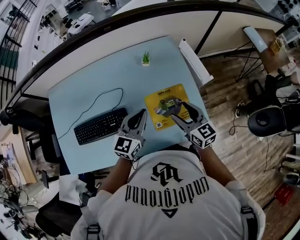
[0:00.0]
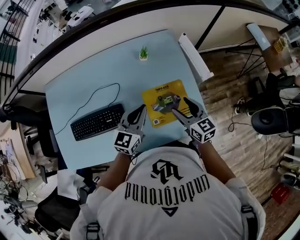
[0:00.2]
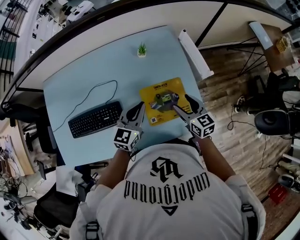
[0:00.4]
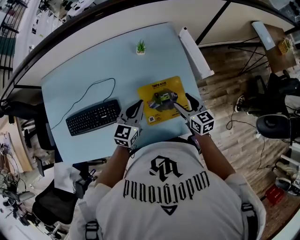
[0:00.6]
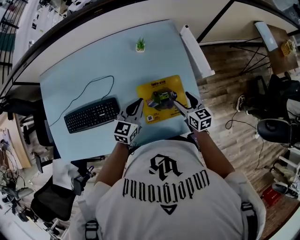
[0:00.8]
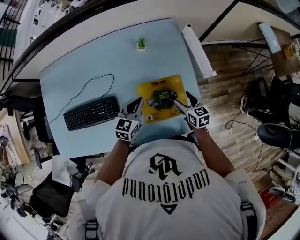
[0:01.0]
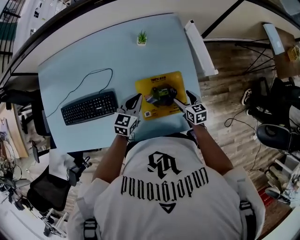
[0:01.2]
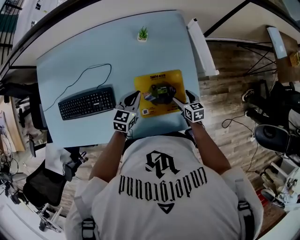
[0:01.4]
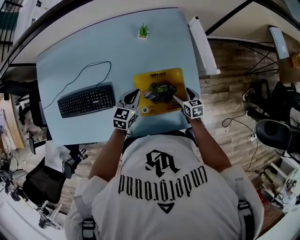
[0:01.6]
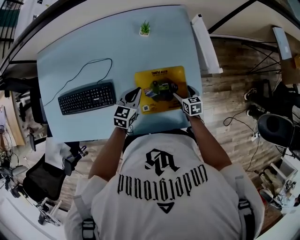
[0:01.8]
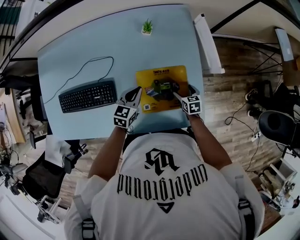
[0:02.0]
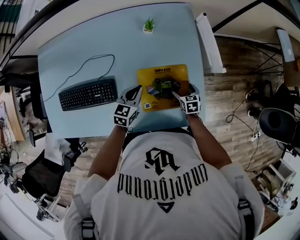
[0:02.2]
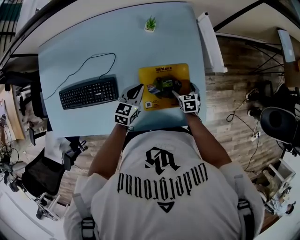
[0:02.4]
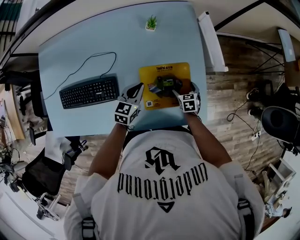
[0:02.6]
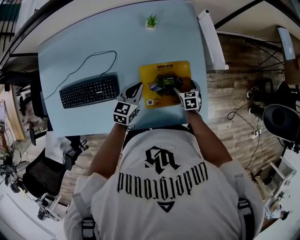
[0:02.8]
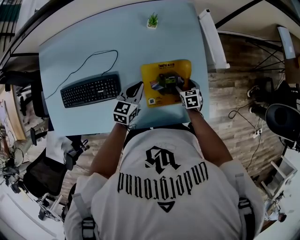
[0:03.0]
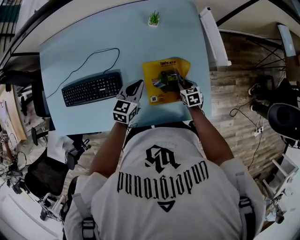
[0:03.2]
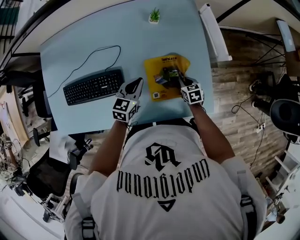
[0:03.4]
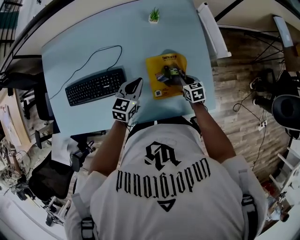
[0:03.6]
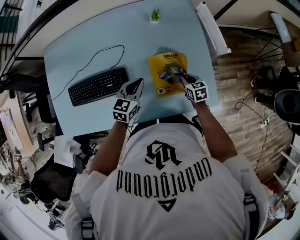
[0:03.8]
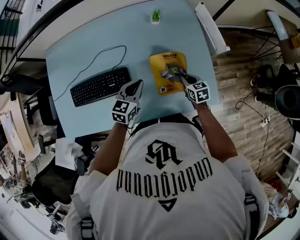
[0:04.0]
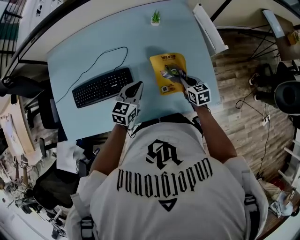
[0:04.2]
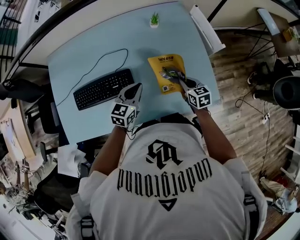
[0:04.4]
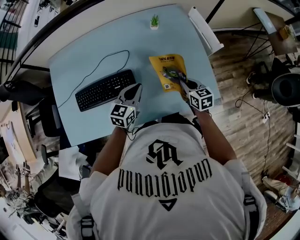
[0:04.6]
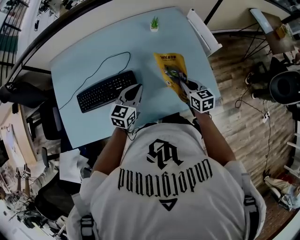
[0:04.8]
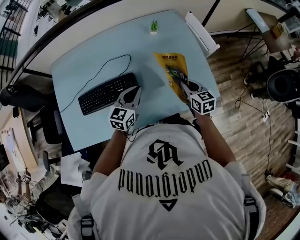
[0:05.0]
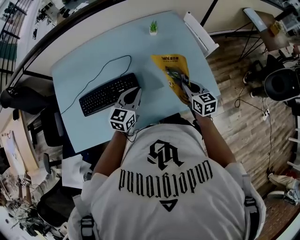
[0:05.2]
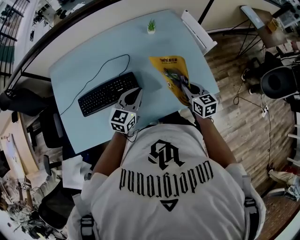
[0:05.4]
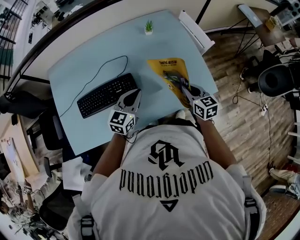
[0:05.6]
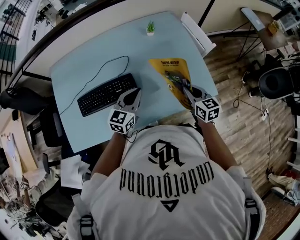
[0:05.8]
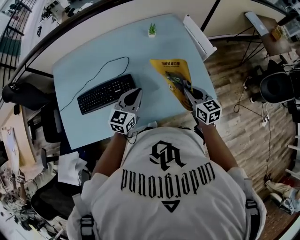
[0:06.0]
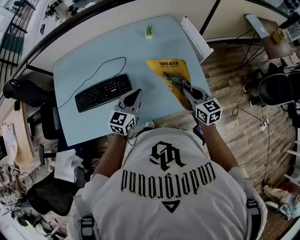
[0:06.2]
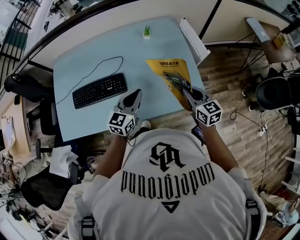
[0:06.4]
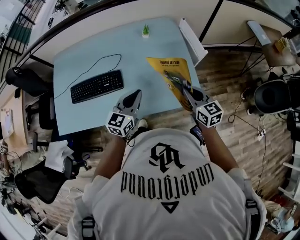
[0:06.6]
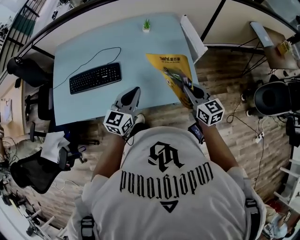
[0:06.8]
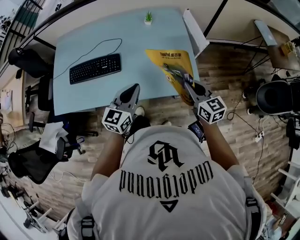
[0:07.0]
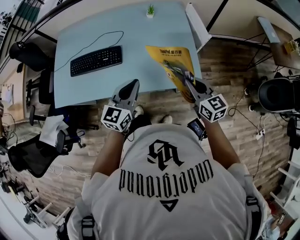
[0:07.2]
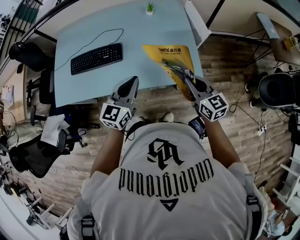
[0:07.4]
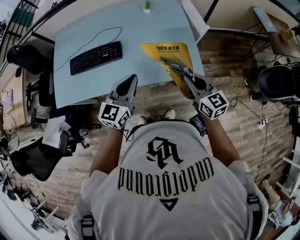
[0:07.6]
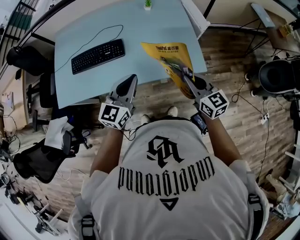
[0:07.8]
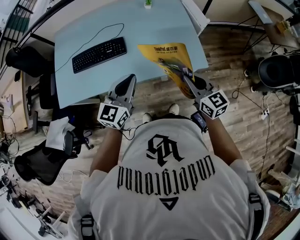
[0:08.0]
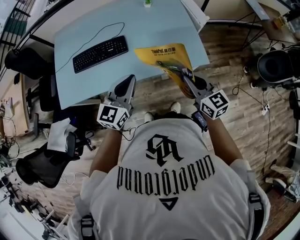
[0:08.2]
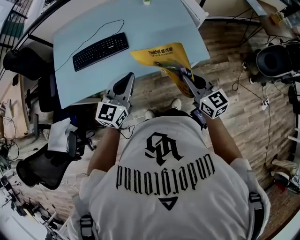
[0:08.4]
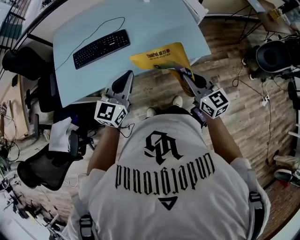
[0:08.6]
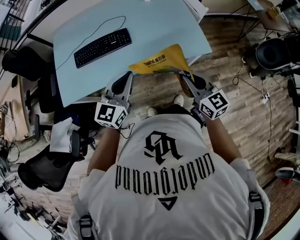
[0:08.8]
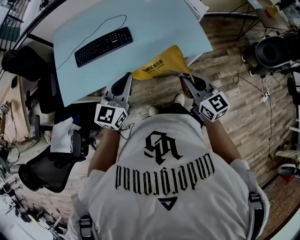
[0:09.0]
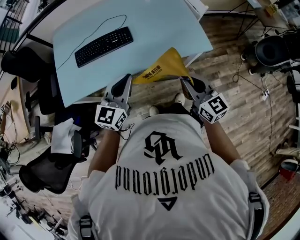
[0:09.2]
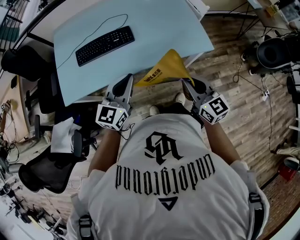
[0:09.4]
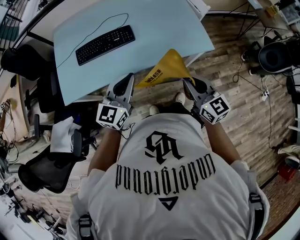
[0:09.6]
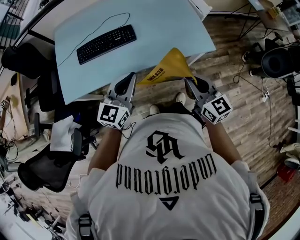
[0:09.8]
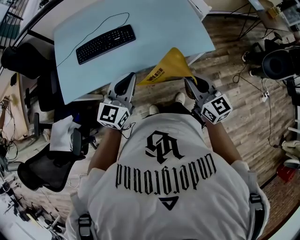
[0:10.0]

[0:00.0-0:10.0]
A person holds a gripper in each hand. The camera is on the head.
0:00.0 to 0:01.4: The right gripper heads downward and to the right, covering about 30 cm, and swivels about 30 degrees. Meanwhile the left gripper heads downward, covering roughly 20 cm, and swivels about 20 degrees.
0:01.4 to 0:02.8: The right gripper shifts roughly 5 cm downward.
0:02.8 to 0:04.2: The left gripper goes about 15 cm backward, upward and to the left. The right gripper shifts approximately 15 cm upward, to the left and backward, and closes up.
0:04.2 to 0:05.8: The left gripper goes roughly 10 cm upward and backward; the right gripper goes about 15 cm upward and backward.
0:05.8 to 0:07.2: The left gripper goes roughly 20 cm backward and to the right. The right gripper shifts approximately 15 cm to the right and backward, and turns by approximately 20 degrees.
0:07.2 to 0:08.6: The left gripper travels to the left and backward by approximately 15 cm, while the right gripper moves backward and to the left, roughly 20 cm.
0:08.6 to 0:10.0: The left gripper changes place by approximately 5 cm, while the right gripper shifts some 5 cm to the left.

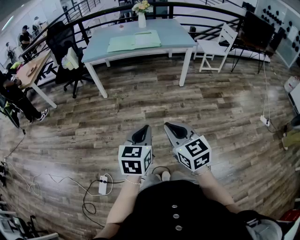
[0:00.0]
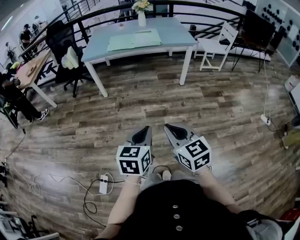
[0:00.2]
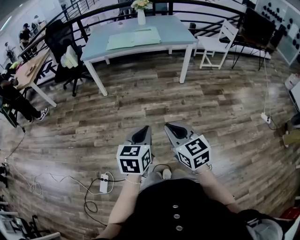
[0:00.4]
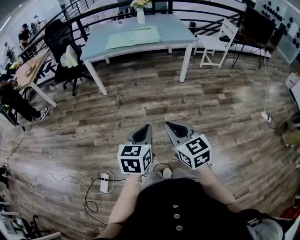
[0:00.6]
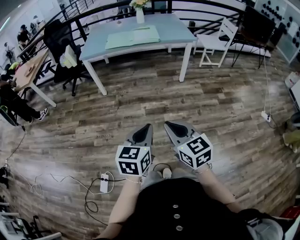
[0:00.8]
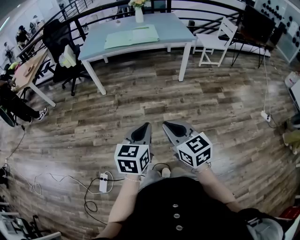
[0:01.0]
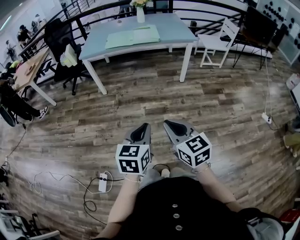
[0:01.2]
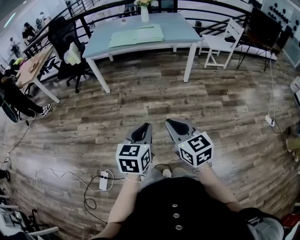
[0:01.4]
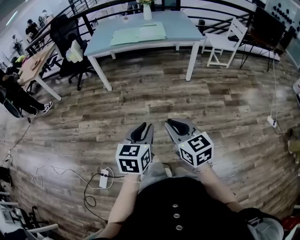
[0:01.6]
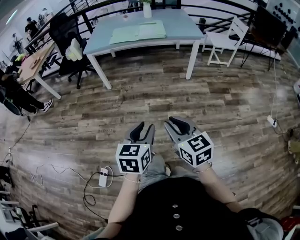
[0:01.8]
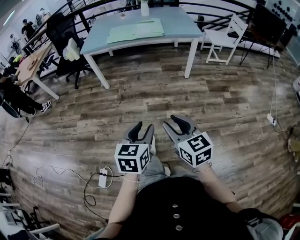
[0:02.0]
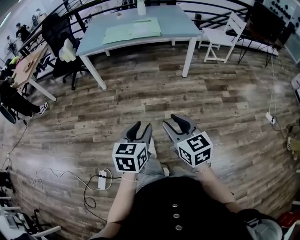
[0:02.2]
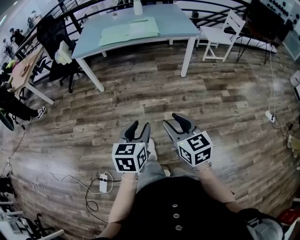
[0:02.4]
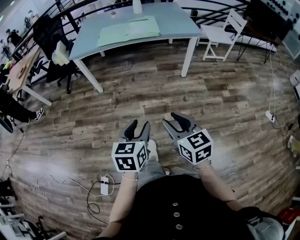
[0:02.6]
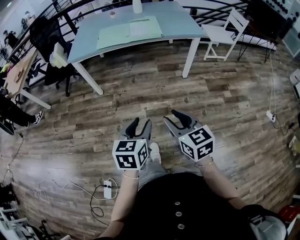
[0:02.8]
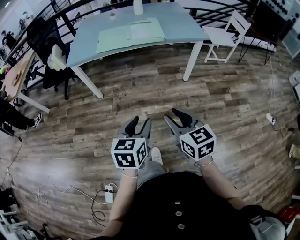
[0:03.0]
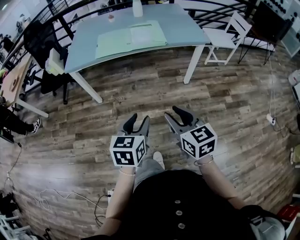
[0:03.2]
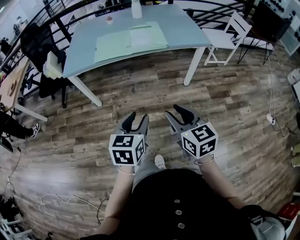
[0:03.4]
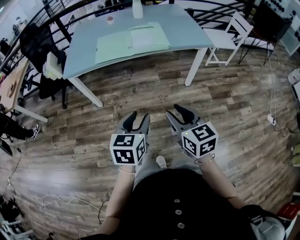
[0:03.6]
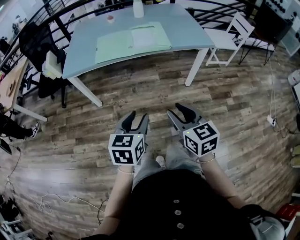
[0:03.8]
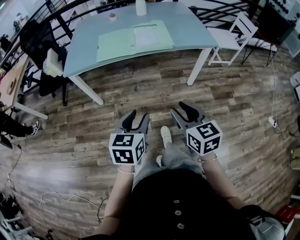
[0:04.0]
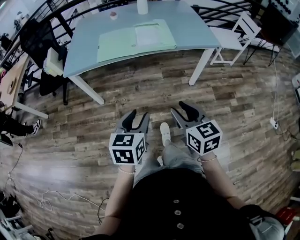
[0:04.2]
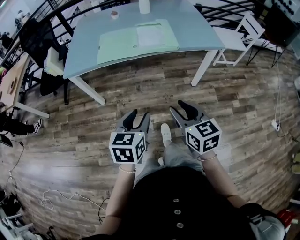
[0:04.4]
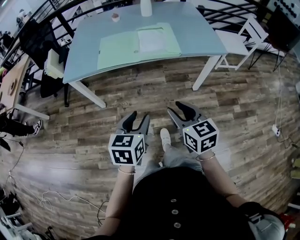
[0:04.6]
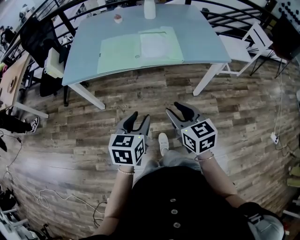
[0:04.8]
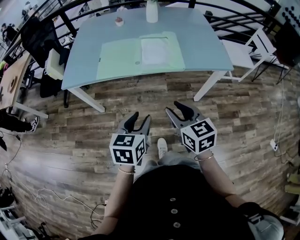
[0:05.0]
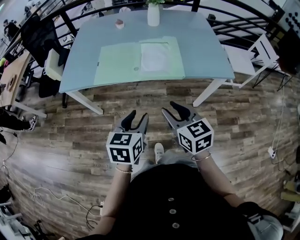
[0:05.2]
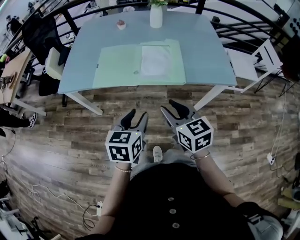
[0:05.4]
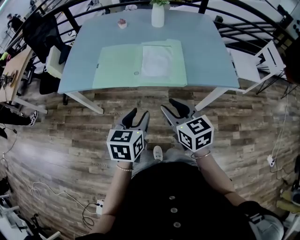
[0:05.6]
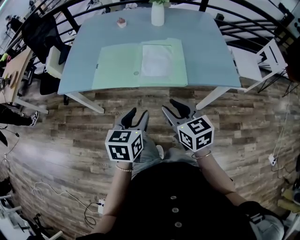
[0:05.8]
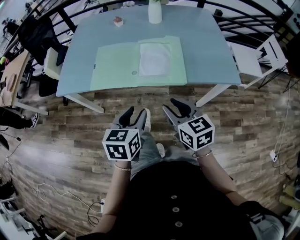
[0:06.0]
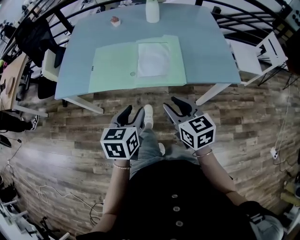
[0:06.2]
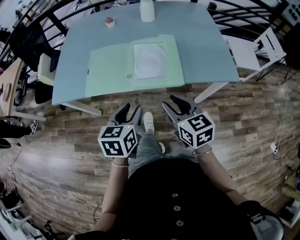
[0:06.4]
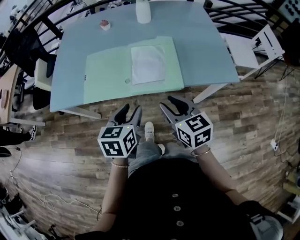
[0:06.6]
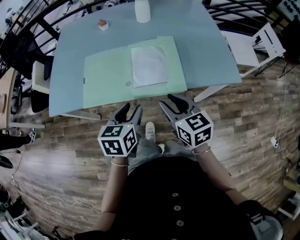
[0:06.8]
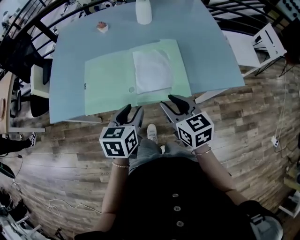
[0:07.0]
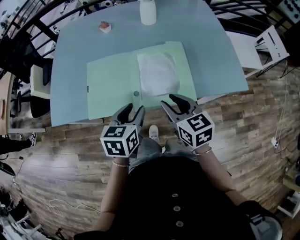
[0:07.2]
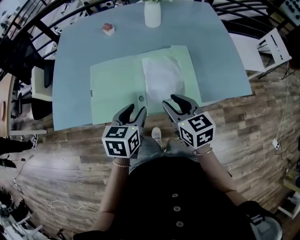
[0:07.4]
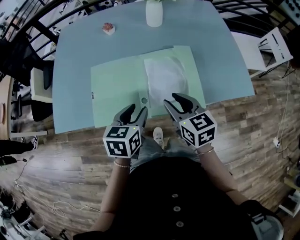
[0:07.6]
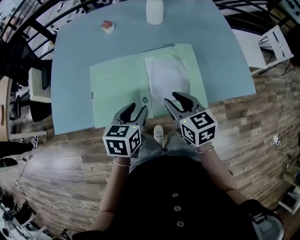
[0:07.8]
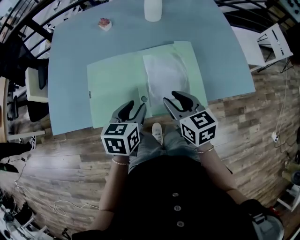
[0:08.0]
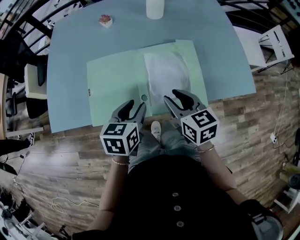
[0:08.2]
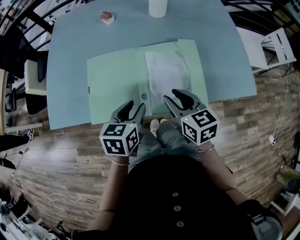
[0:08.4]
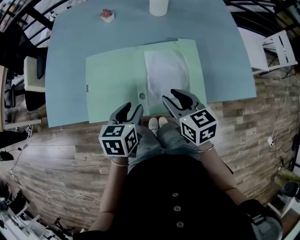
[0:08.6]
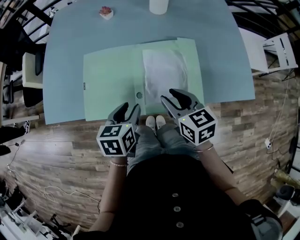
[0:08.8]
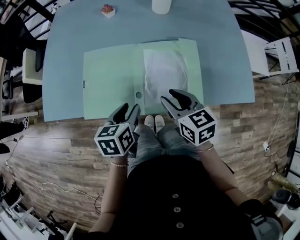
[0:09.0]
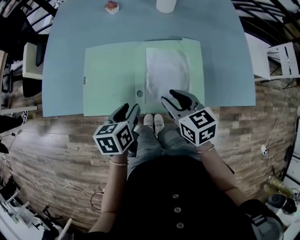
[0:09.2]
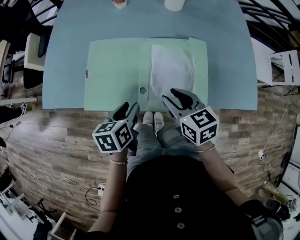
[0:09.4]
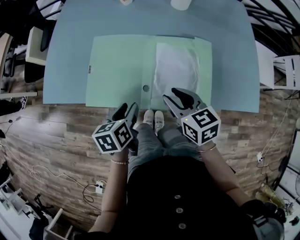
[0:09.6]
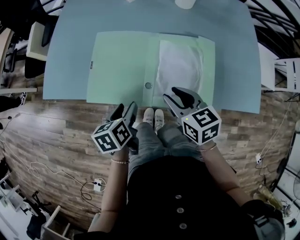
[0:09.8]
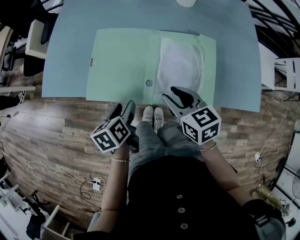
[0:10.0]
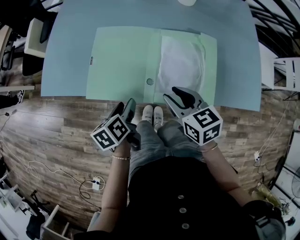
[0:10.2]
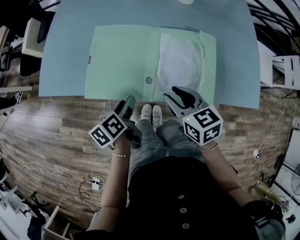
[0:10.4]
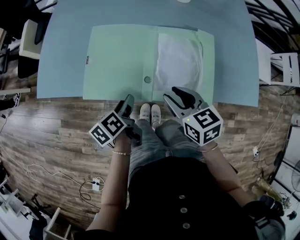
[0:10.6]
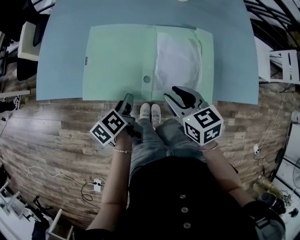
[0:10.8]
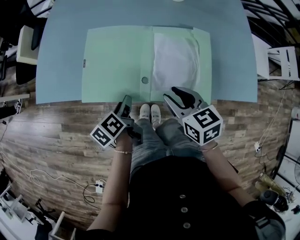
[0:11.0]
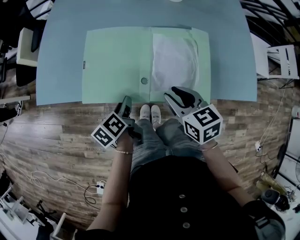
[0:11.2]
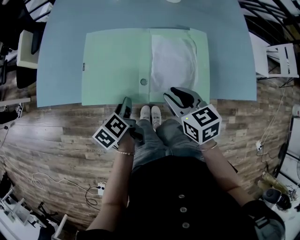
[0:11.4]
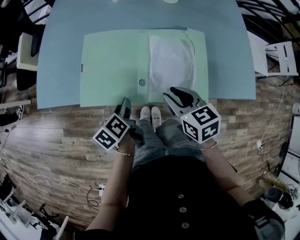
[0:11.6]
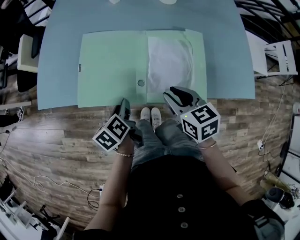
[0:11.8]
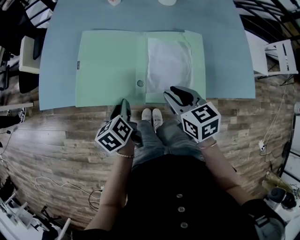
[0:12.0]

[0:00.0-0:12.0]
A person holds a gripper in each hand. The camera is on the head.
0:00.0 to 0:01.6: The right gripper moves roughly 5 cm.
0:01.6 to 0:03.0: The two grippers go roughly 25 cm forward. The right gripper opens its fingers. The left gripper opens its fingers.
0:03.0 to 0:04.4: The grippers both shift forward by some 20 cm.
0:04.4 to 0:06.0: The grippers both shift forward by roughly 25 cm.
0:06.0 to 0:07.6: The two grippers go approximately 20 cm forward.
0:07.6 to 0:09.0: The grippers make only small movements.
0:09.0 to 0:10.4: The left gripper travels downward and to the left by roughly 10 cm, and rotates approximately 40 degrees, while the right gripper changes place by some 5 cm.
0:10.4 to 0:12.0: The left gripper closes up.

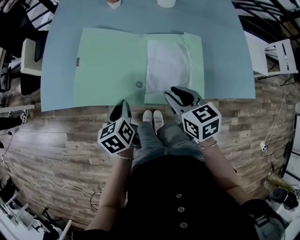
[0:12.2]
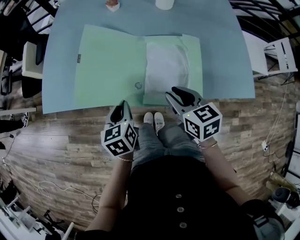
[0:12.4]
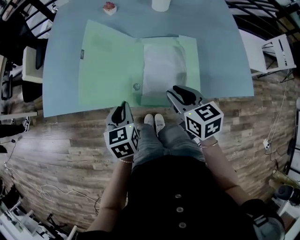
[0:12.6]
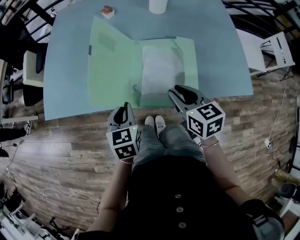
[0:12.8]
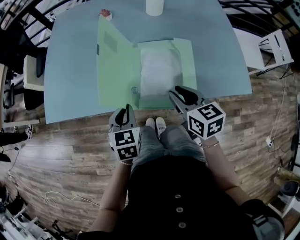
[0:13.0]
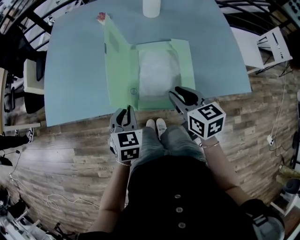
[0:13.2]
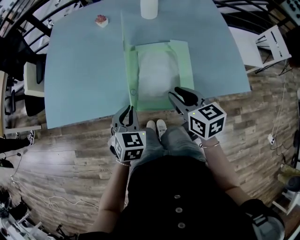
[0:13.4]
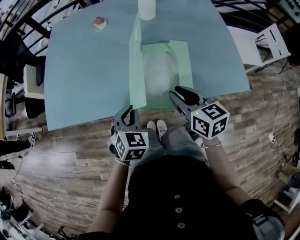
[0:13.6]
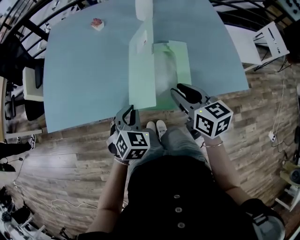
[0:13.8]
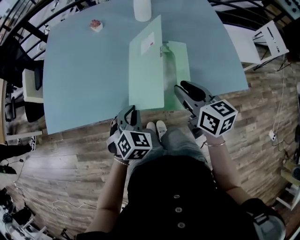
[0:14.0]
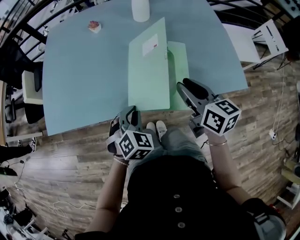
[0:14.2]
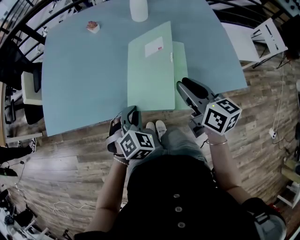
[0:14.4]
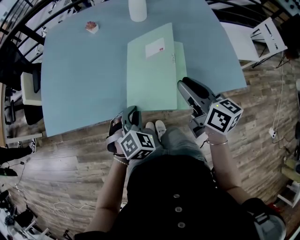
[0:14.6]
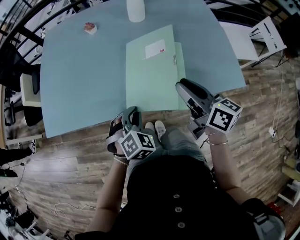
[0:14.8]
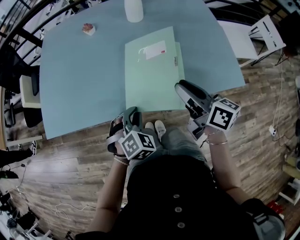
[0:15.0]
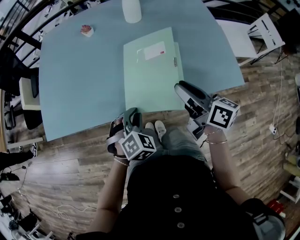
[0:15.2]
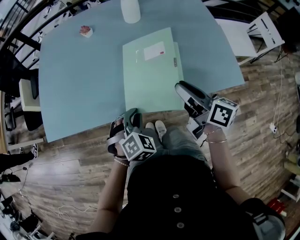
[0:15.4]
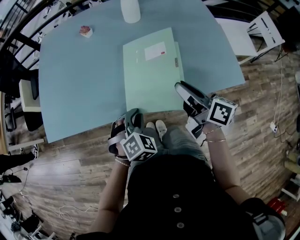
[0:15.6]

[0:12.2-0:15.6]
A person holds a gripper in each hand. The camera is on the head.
0:12.2 to 0:13.8: The right gripper is displaced to the right and upward by about 10 cm. Meanwhile the left gripper is displaced to the right by about 10 cm, and twists some 60 degrees clockwise, seen from behind.
0:13.8 to 0:15.6: The left gripper changes place by roughly 5 cm, and changes its angle by approximately 20 degrees; the right gripper swivels about 30 degrees.
